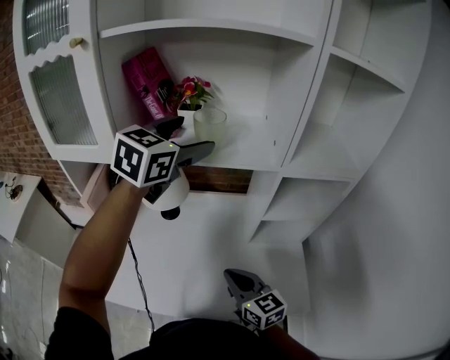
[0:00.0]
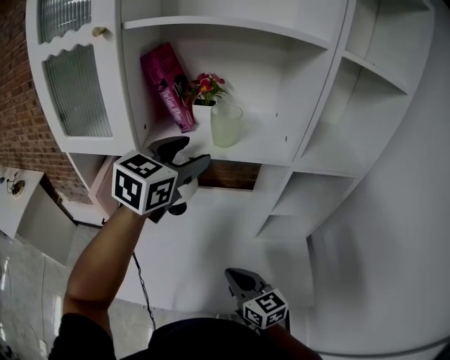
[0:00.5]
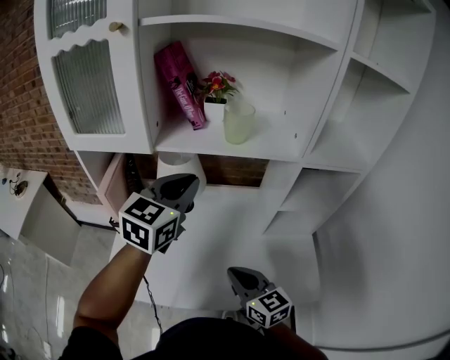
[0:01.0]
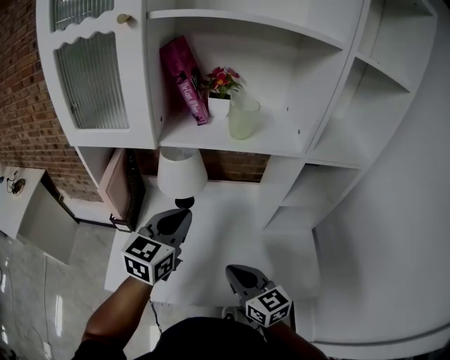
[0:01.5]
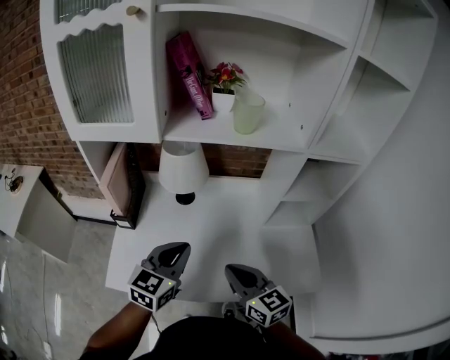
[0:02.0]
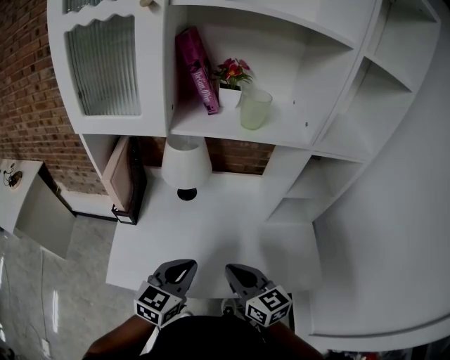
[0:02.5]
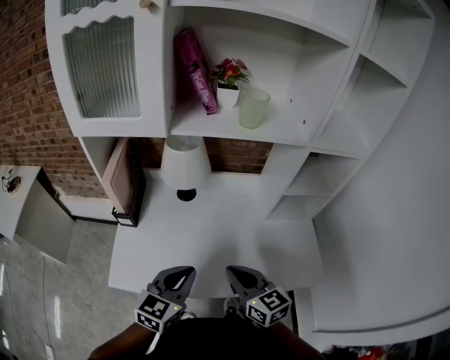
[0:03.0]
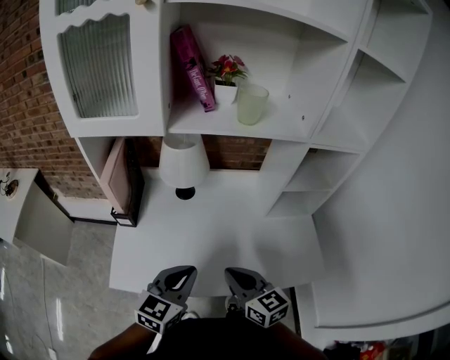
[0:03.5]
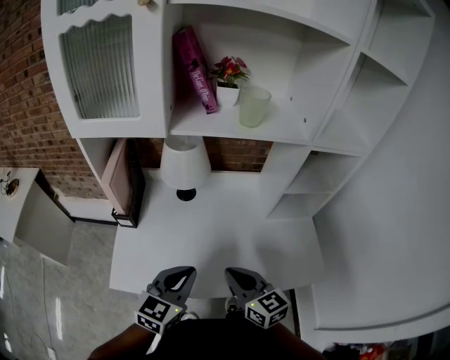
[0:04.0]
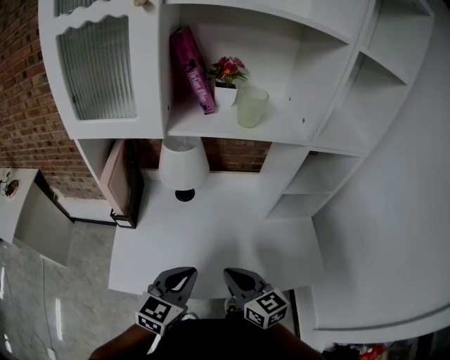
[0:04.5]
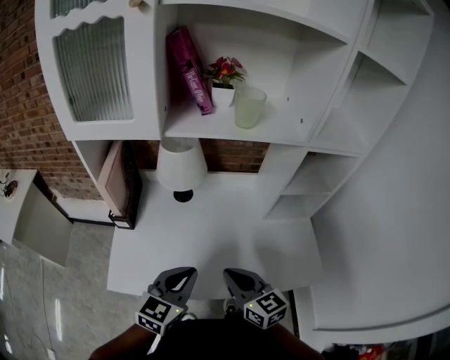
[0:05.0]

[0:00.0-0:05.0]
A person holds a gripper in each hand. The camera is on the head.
0:00.0 to 0:02.5: The left gripper goes some 40 cm backward and downward, and closes its fingers. Meanwhile the right gripper is displaced to the left and backward by some 10 cm.
0:02.5 to 0:05.0: The grippers make only small movements.

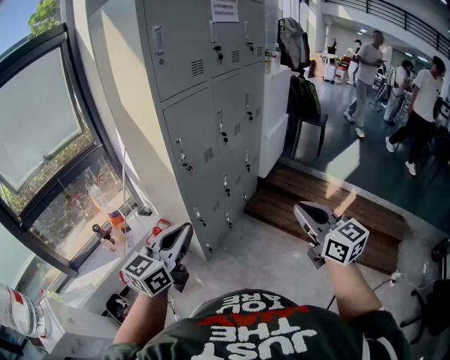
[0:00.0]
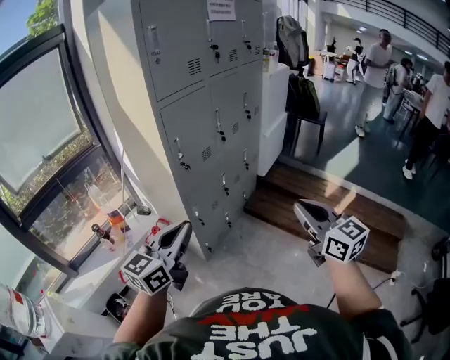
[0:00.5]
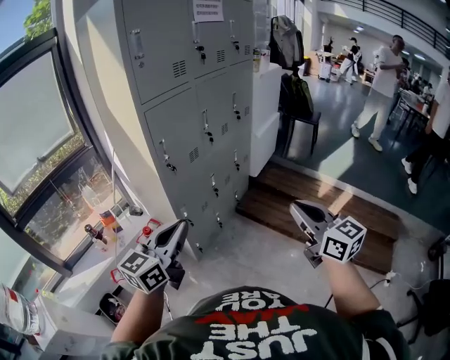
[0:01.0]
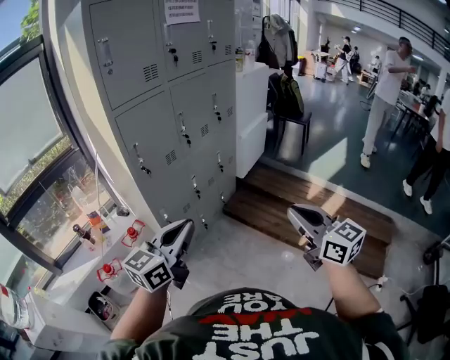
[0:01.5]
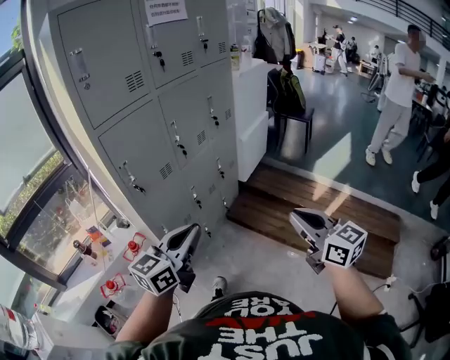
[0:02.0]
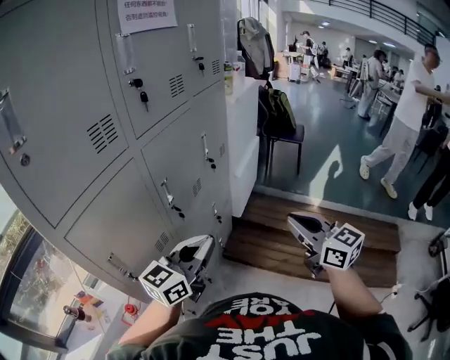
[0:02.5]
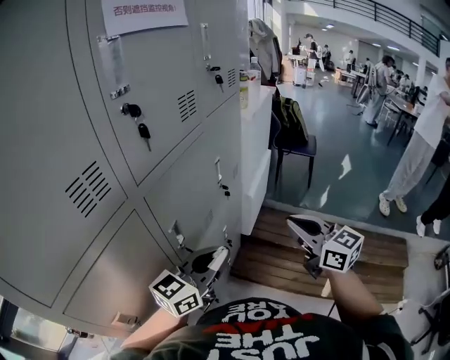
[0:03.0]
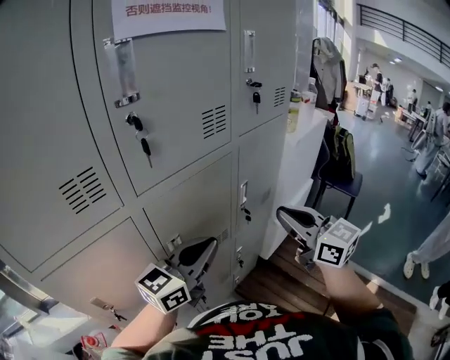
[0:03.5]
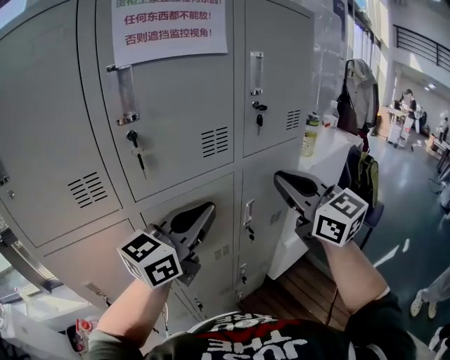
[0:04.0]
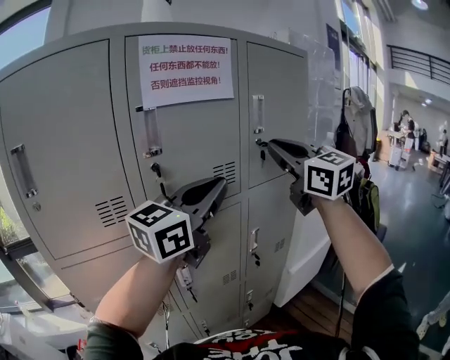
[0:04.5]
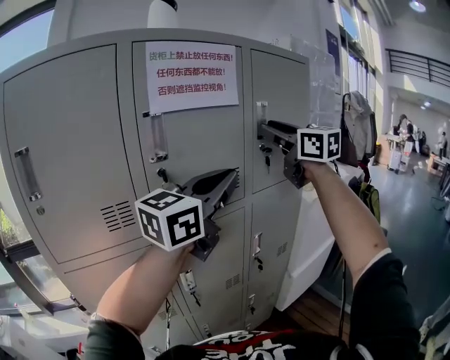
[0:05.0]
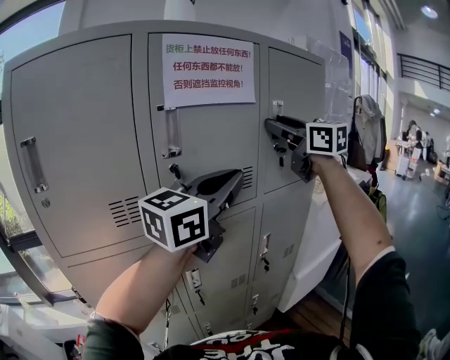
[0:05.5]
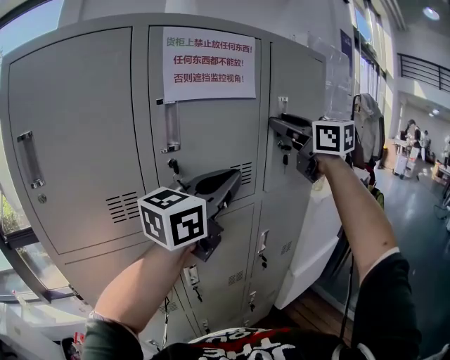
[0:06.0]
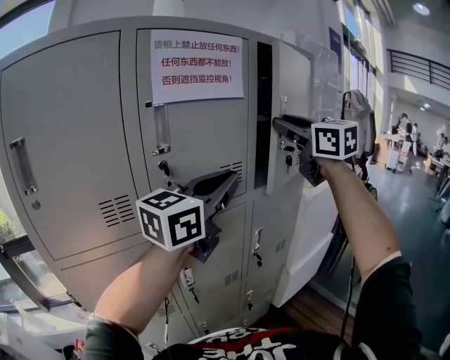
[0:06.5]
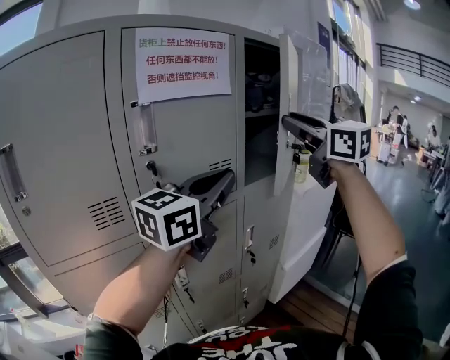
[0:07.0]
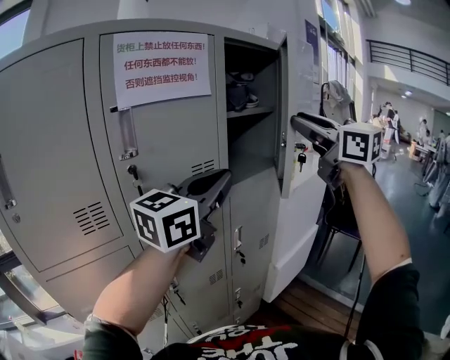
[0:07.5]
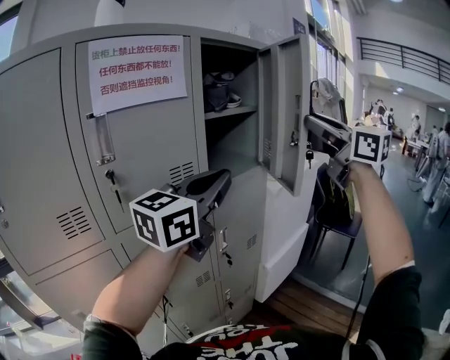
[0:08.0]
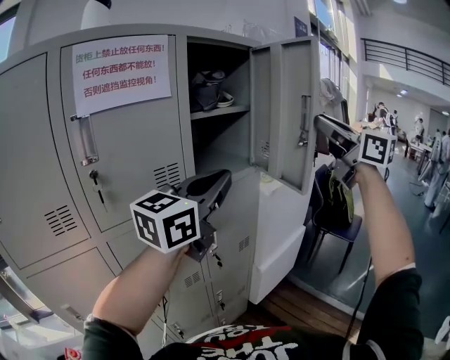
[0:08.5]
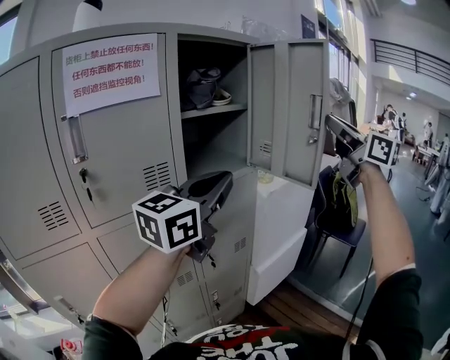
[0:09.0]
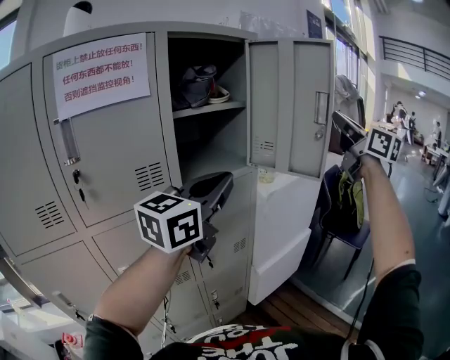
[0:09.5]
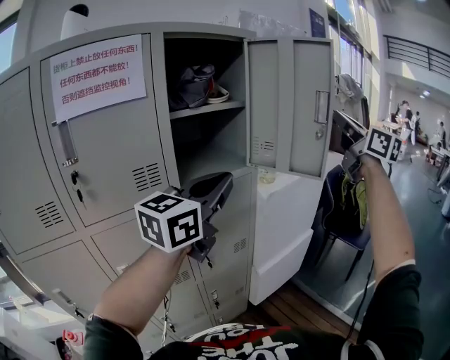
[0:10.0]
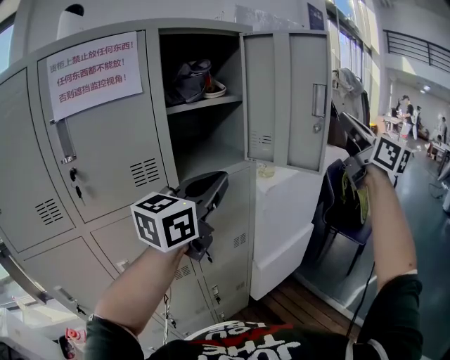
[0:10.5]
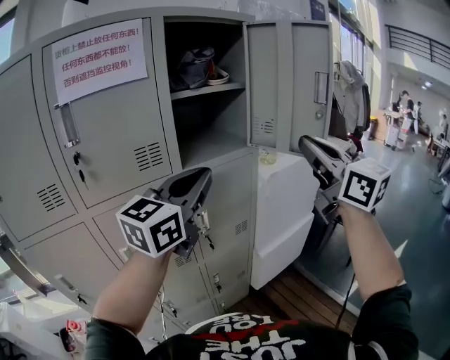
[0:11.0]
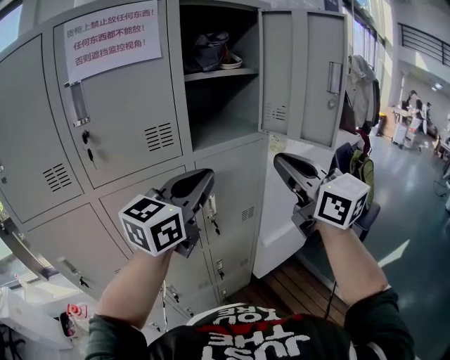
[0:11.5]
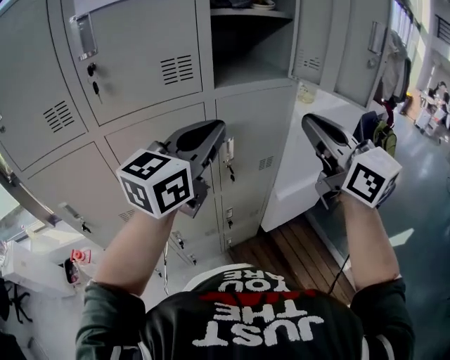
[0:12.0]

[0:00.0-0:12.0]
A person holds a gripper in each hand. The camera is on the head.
0:00.0 to 0:02.0: Both grippers move to the right and forward, roughly 25 cm.
0:02.0 to 0:04.0: Both grippers are carried some 60 cm. The left gripper rotates some 20 degrees; the right gripper rotates approximately 30 degrees.
0:04.0 to 0:06.0: The left gripper is displaced upward by some 15 cm. Meanwhile the right gripper goes approximately 20 cm upward and forward, and opens.
0:06.0 to 0:08.0: The left gripper is displaced to the right by about 10 cm, while the right gripper is displaced to the right by some 25 cm.
0:08.0 to 0:10.0: The left gripper travels to the right and forward by roughly 10 cm. The right gripper shifts some 25 cm to the right and forward, and closes up.
0:10.0 to 0:12.0: The left gripper is displaced downward, to the left and backward by approximately 15 cm. The right gripper moves to the left, downward and backward, approximately 35 cm, and rotates some 20 degrees.

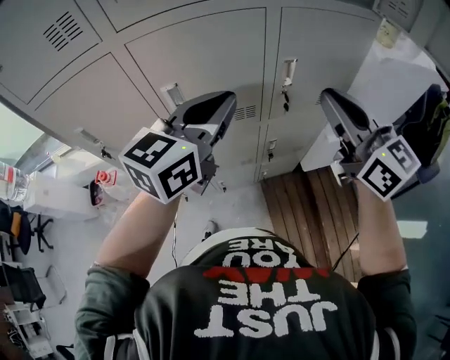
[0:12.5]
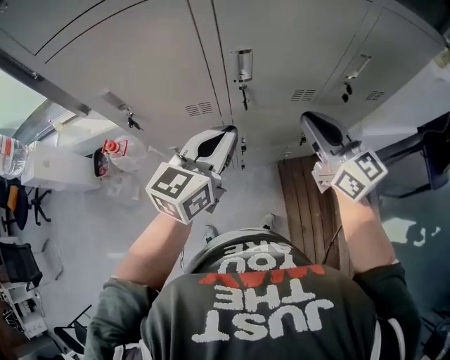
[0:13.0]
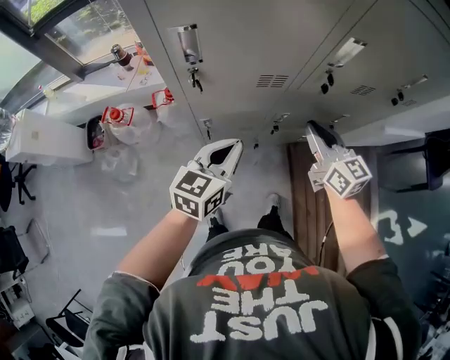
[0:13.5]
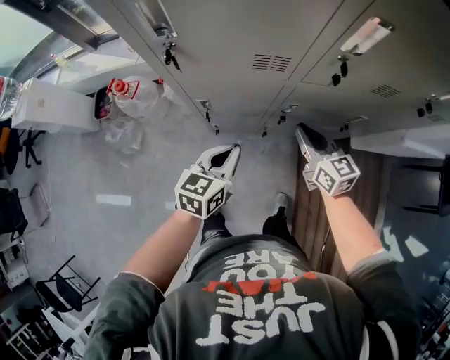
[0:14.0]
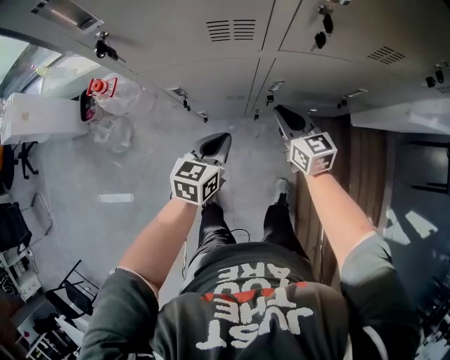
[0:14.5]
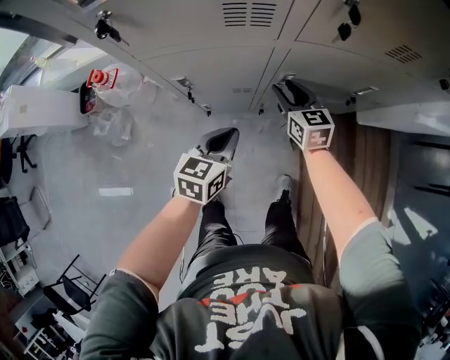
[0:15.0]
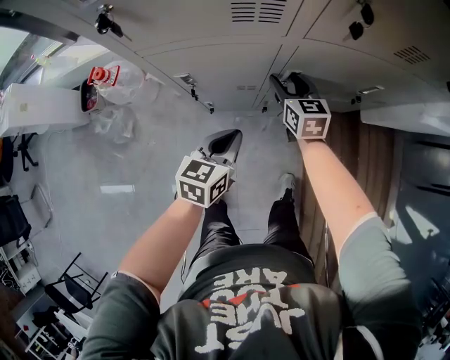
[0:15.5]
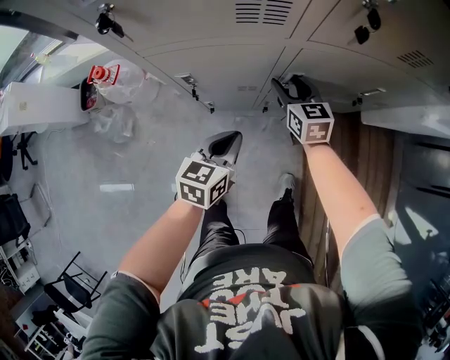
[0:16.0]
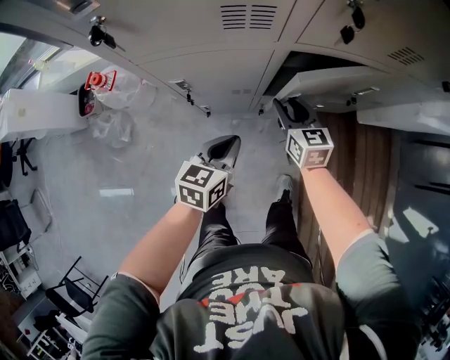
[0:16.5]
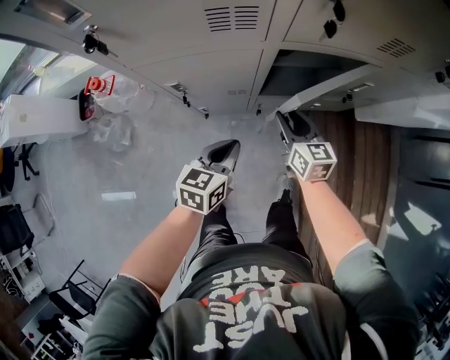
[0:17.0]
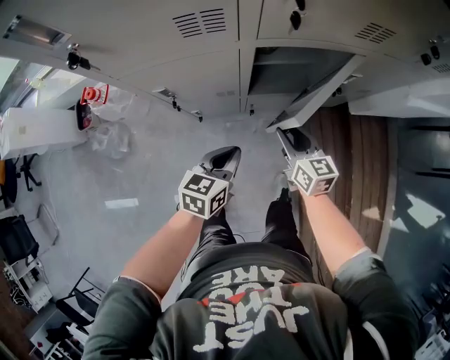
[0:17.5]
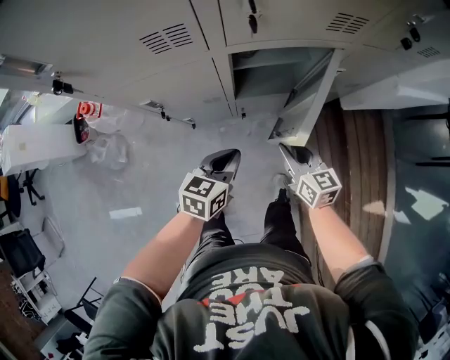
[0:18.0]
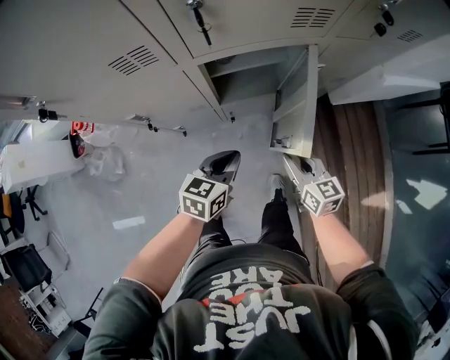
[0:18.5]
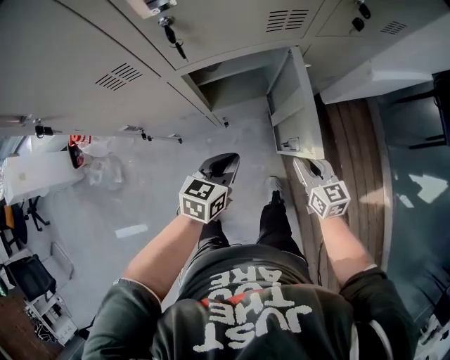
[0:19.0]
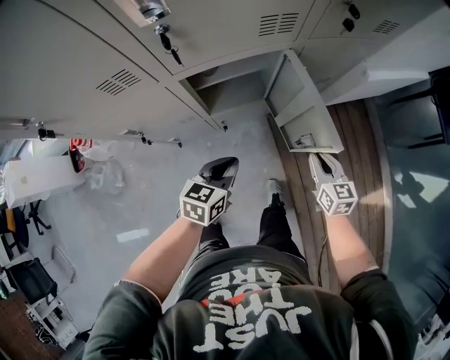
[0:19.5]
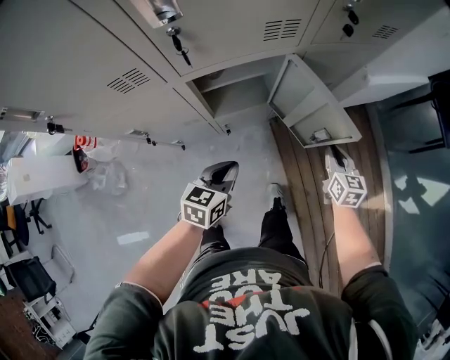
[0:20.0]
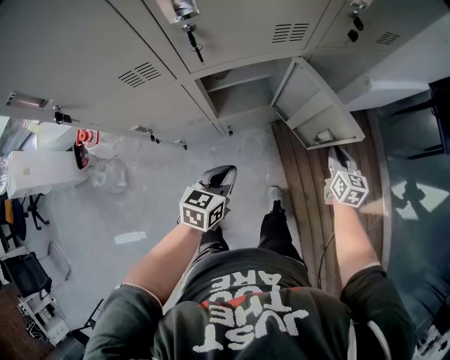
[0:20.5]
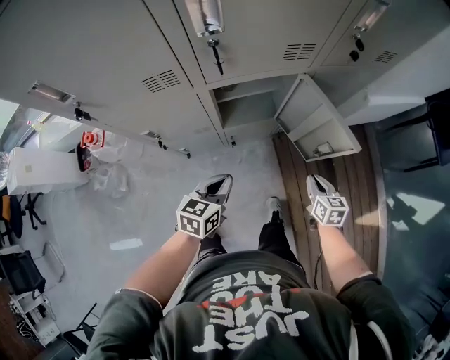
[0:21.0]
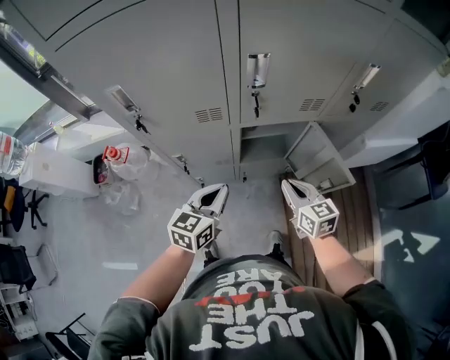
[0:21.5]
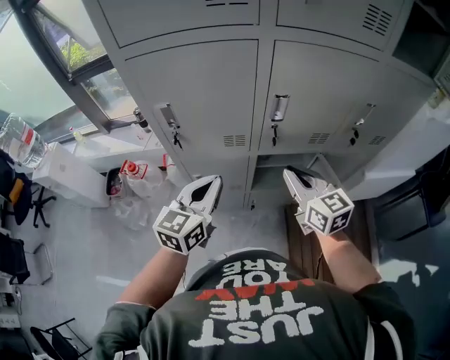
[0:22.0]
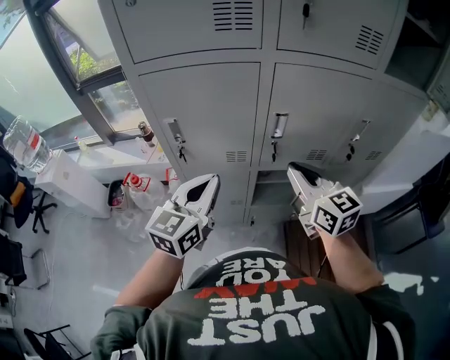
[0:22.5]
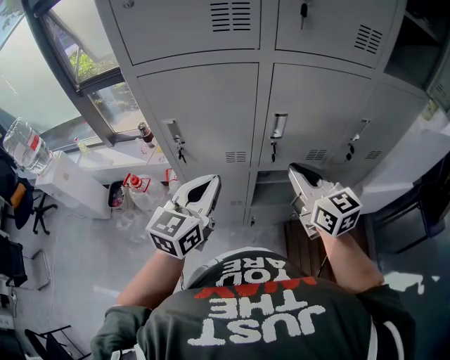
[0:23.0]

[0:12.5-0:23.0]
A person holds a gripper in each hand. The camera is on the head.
0:12.5 to 0:14.5: The grippers both shift downward and to the left by roughly 60 cm. The right gripper swivels approximately 30 degrees; the left gripper rotates some 40 degrees.
0:14.5 to 0:16.5: The right gripper travels forward and back again, about 10 cm each way, and opens its fingers.
0:16.5 to 0:19.0: The right gripper is displaced to the right and backward by about 30 cm. Meanwhile the left gripper heads to the right, covering about 15 cm.
0:19.0 to 0:21.0: The left gripper ends up approximately 5 cm from where it was. Meanwhile the right gripper closes its fingers.
0:21.0 to 0:23.0: Both grippers move upward and to the left, about 50 cm. The right gripper tilts its fingers roughly 30 degrees upward; the left gripper changes its angle by about 40 degrees.
